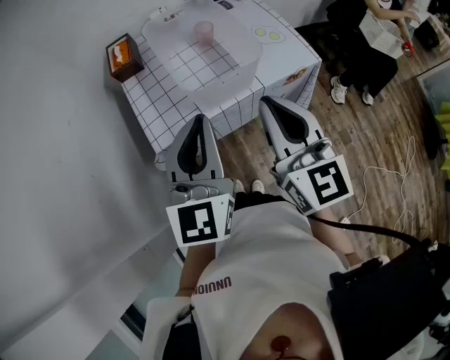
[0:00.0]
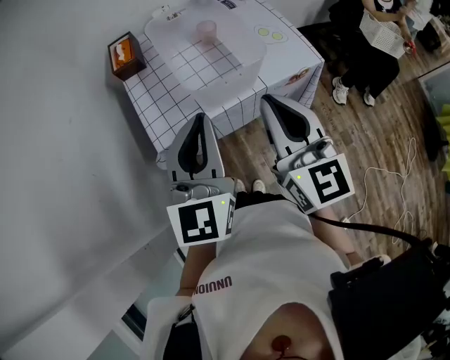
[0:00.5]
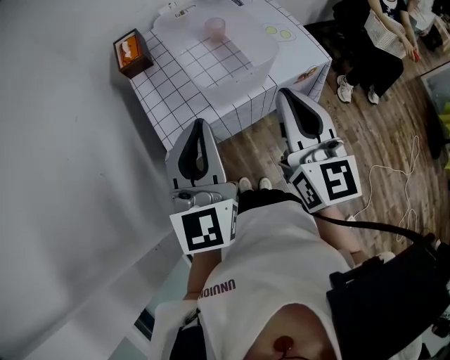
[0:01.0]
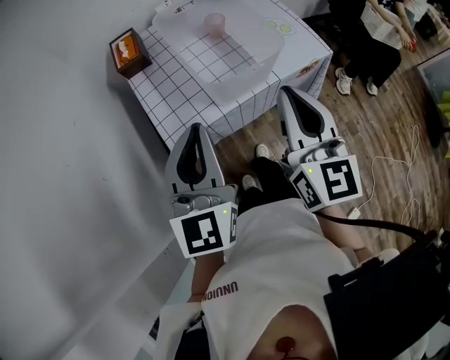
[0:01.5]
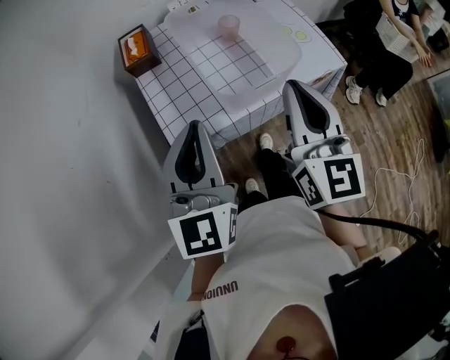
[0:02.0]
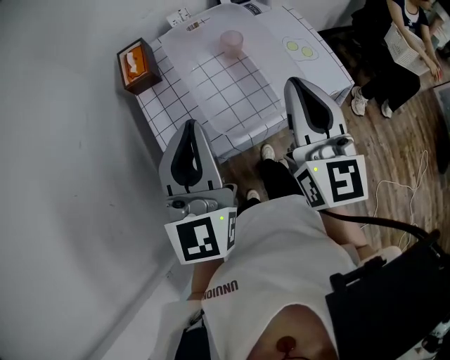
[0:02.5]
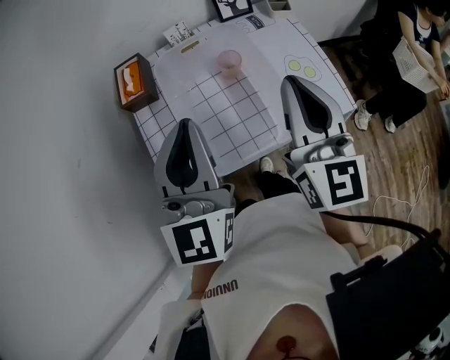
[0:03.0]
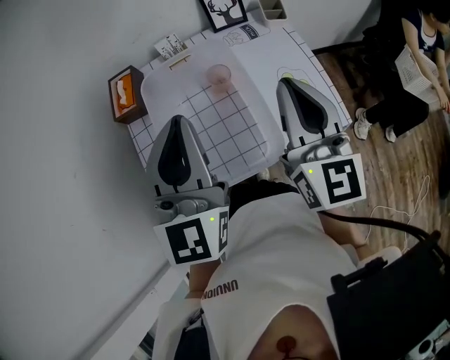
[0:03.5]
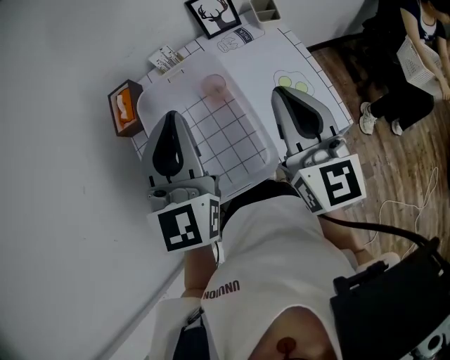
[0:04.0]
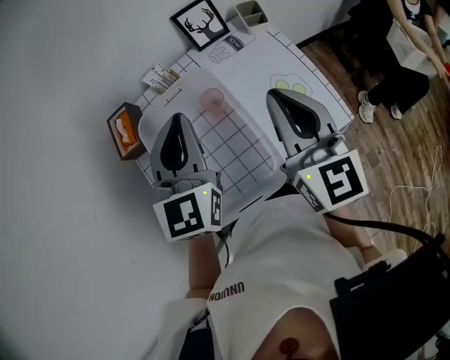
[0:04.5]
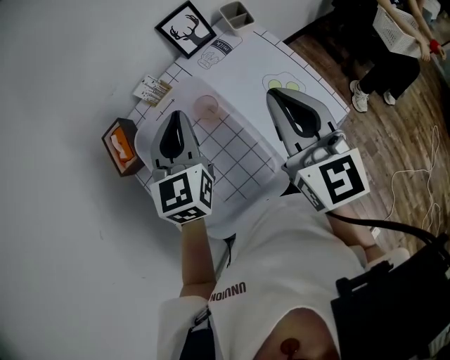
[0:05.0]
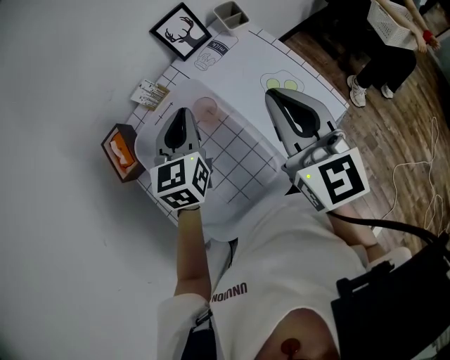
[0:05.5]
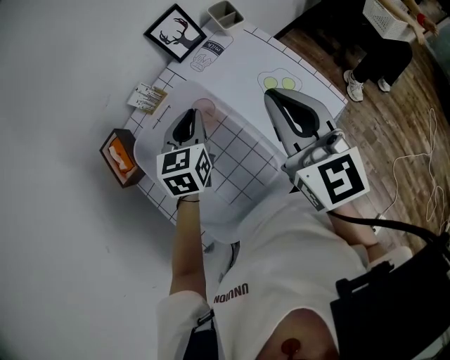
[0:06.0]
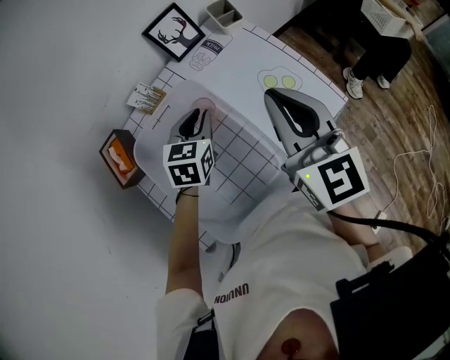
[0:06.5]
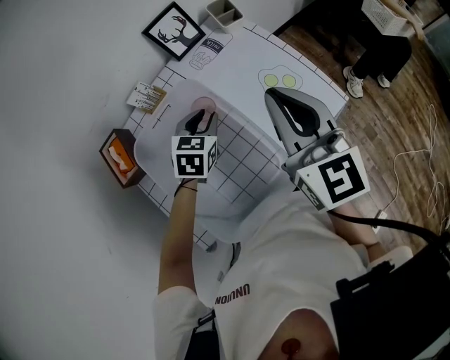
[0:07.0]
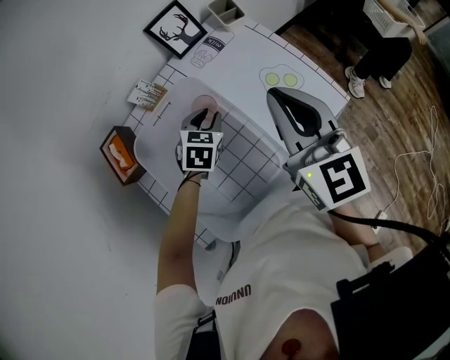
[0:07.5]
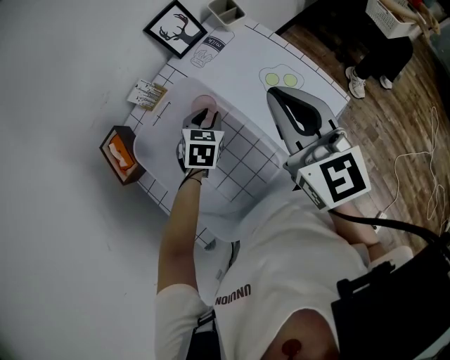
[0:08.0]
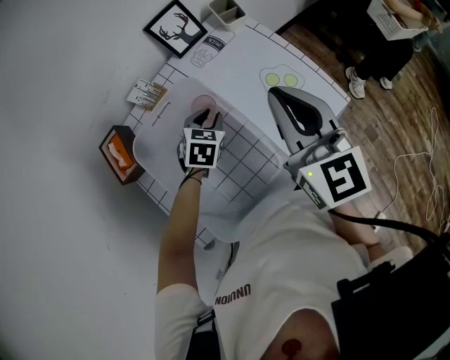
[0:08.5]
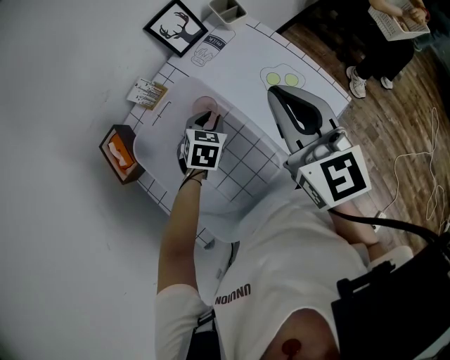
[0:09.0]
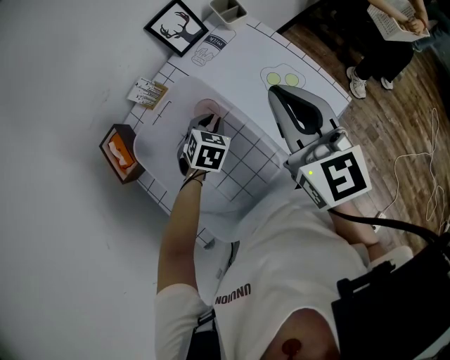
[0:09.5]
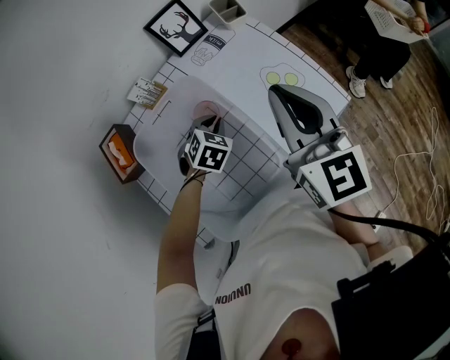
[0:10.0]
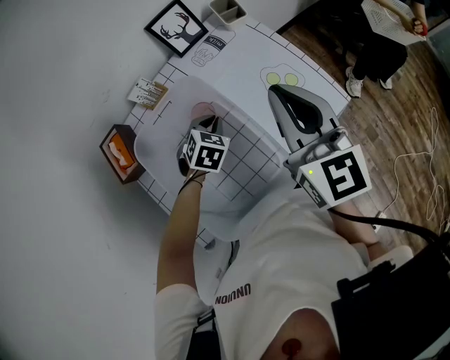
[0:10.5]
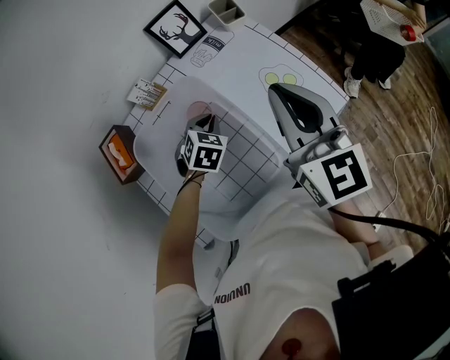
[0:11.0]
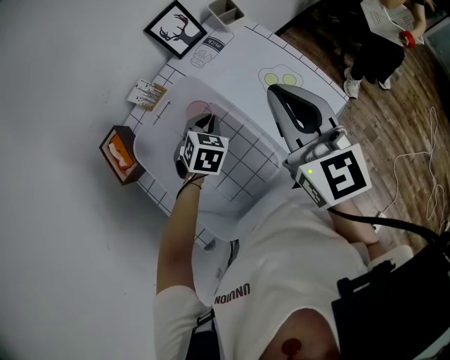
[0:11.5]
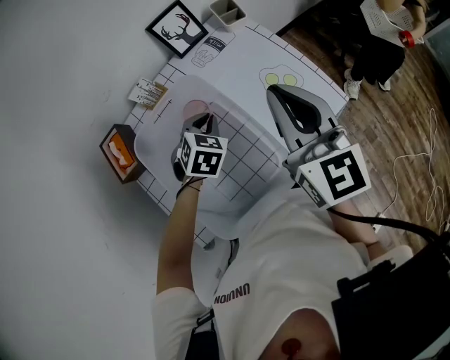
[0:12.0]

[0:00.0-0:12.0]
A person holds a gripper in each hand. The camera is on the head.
0:00.0 to 0:02.0: The right gripper goes some 5 cm forward; the left gripper heads to the left, covering about 10 cm.
0:02.0 to 0:04.0: Both grippers move forward and to the right, approximately 25 cm.
0:04.0 to 0:06.0: The left gripper goes about 25 cm downward and forward, and points its fingers some 30 degrees further downward.
0:06.0 to 0:08.0: The left gripper goes roughly 10 cm downward, and turns by about 20 degrees.
0:08.0 to 0:10.0: The grippers stay close to where they were, moving slightly.
0:10.0 to 0:12.0: The left gripper heads upward, covering about 5 cm.

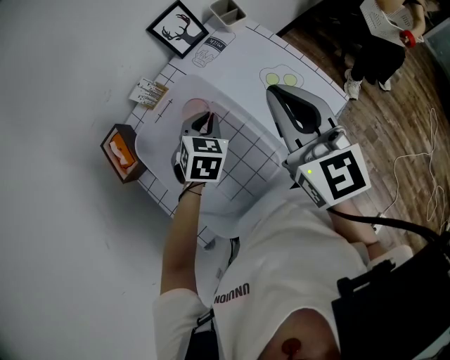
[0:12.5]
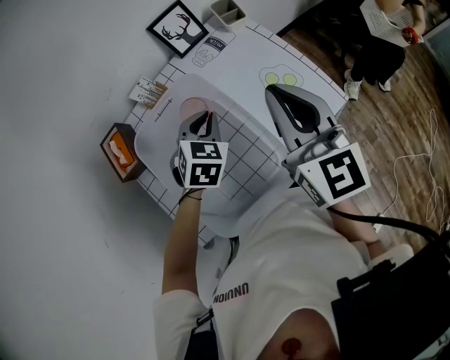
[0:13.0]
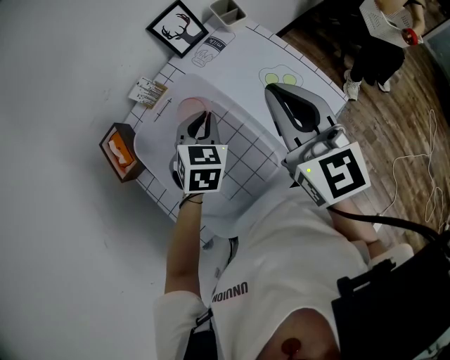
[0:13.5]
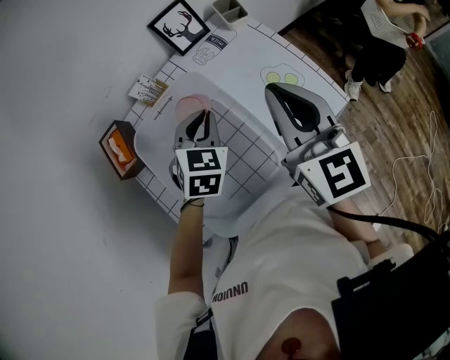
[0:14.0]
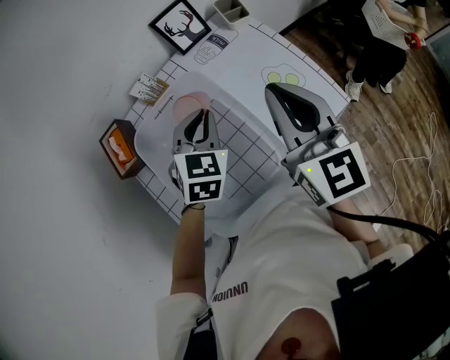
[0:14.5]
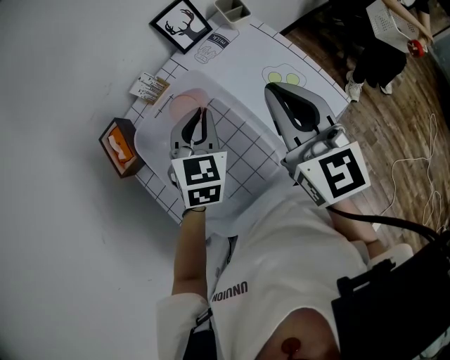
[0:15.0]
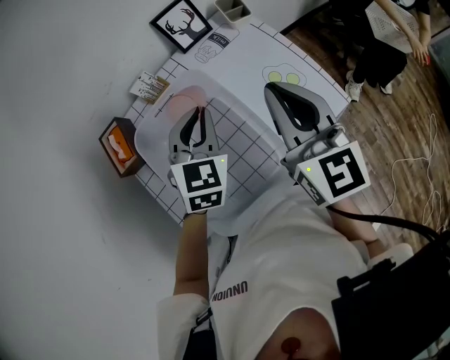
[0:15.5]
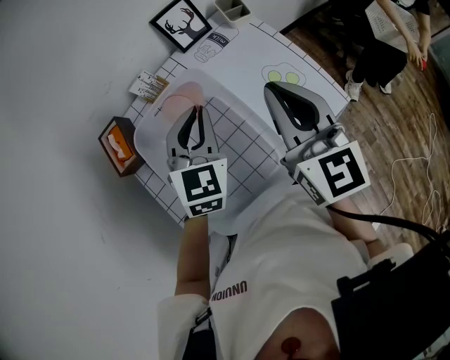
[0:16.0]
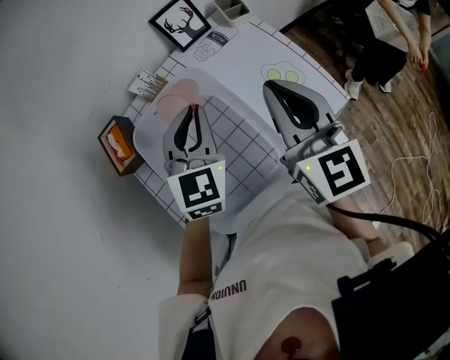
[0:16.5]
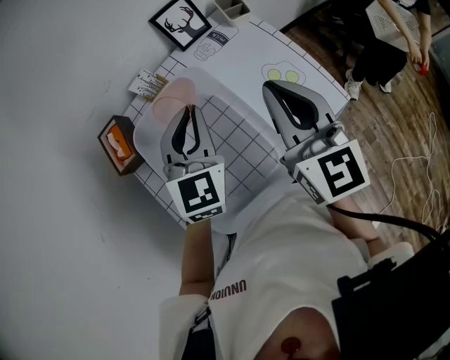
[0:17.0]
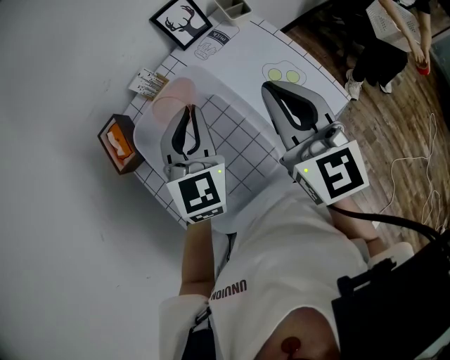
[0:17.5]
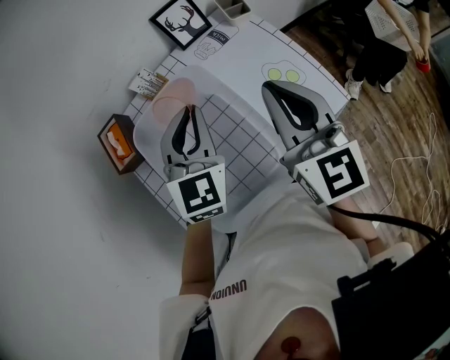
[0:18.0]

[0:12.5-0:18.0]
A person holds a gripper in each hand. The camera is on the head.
0:12.5 to 0:14.5: The left gripper moves upward, approximately 5 cm.
0:14.5 to 0:16.0: The left gripper travels upward by some 5 cm.
0:16.0 to 0:18.0: The grippers move only a little.

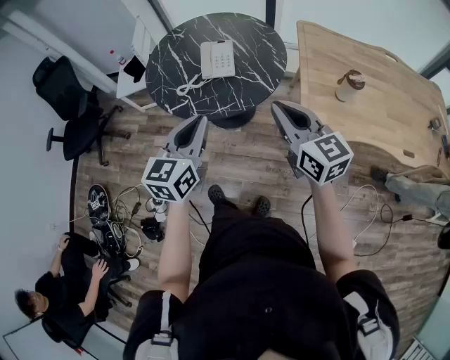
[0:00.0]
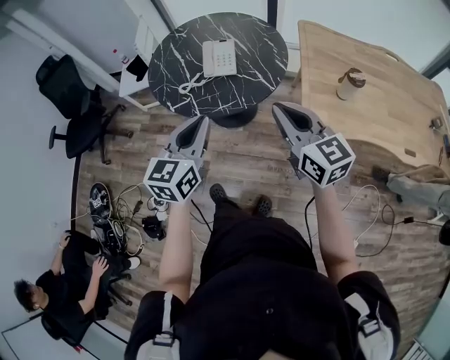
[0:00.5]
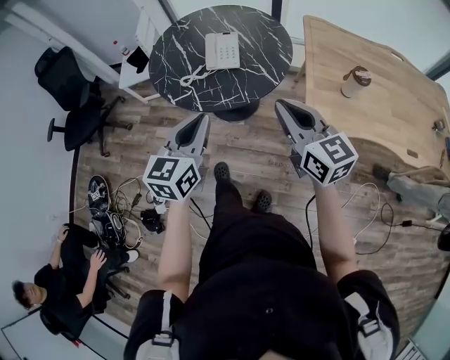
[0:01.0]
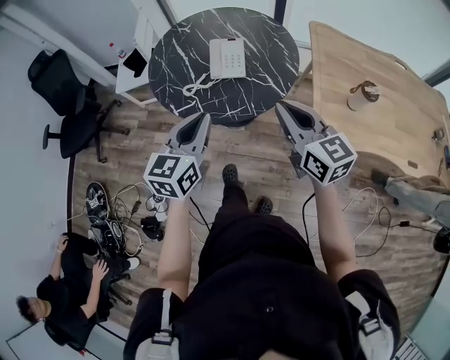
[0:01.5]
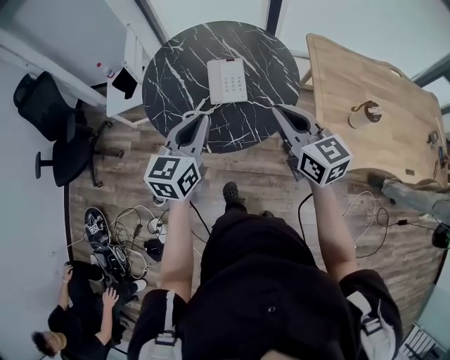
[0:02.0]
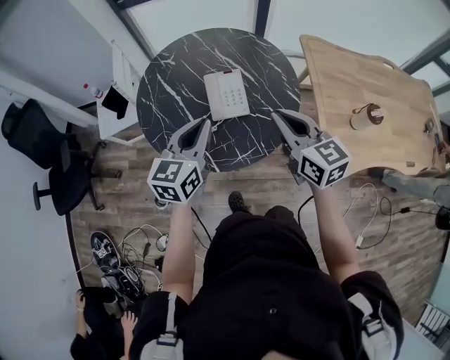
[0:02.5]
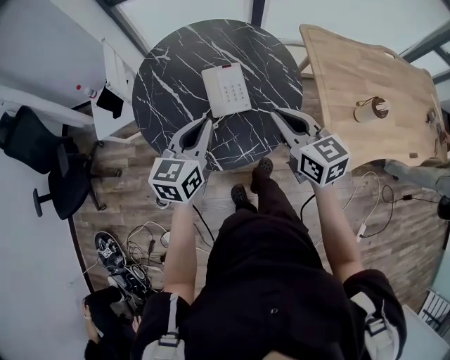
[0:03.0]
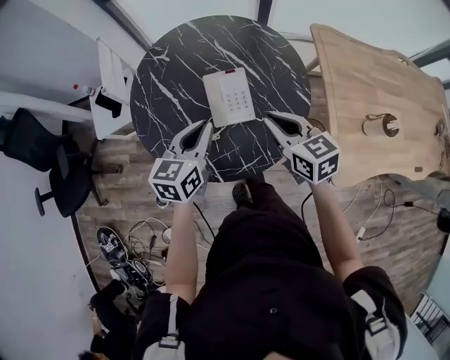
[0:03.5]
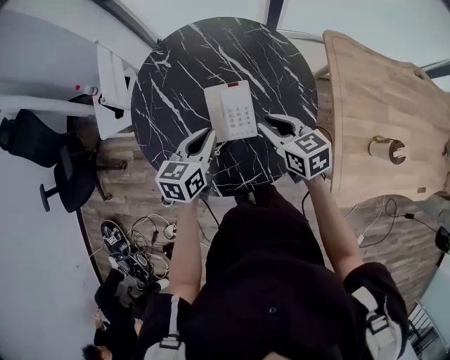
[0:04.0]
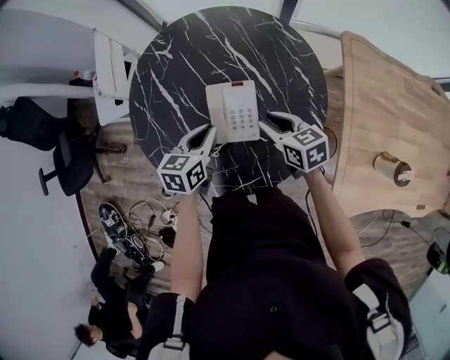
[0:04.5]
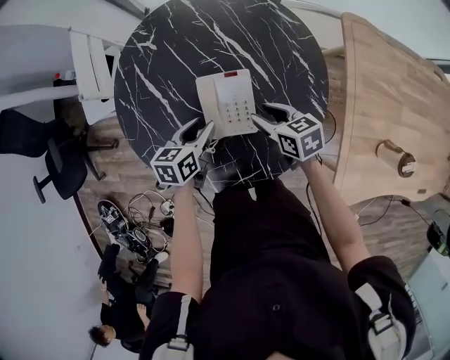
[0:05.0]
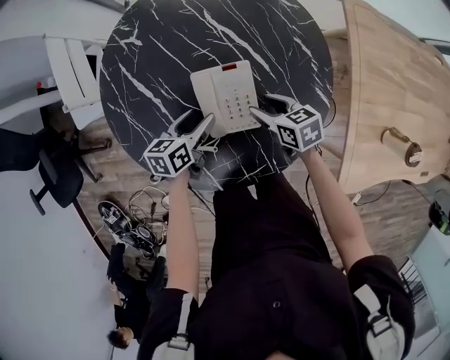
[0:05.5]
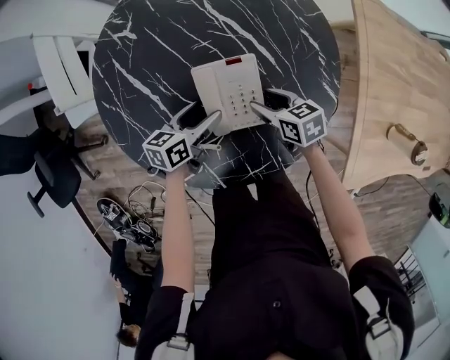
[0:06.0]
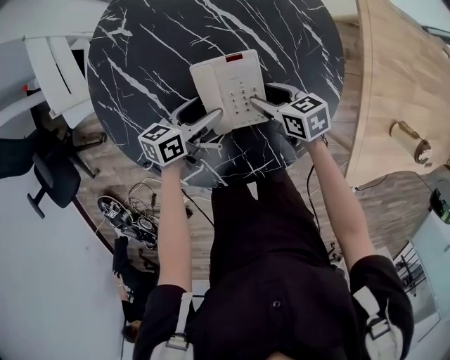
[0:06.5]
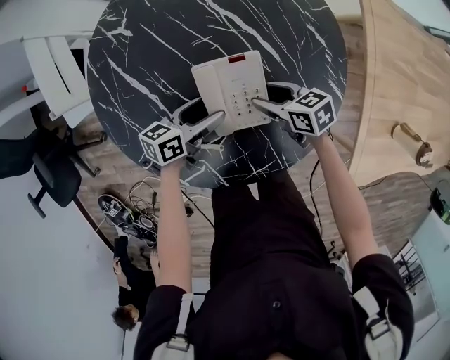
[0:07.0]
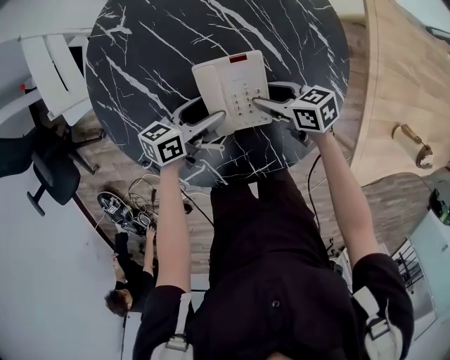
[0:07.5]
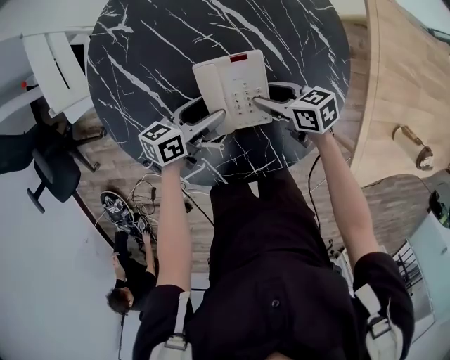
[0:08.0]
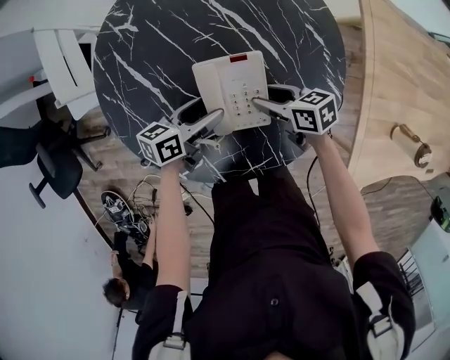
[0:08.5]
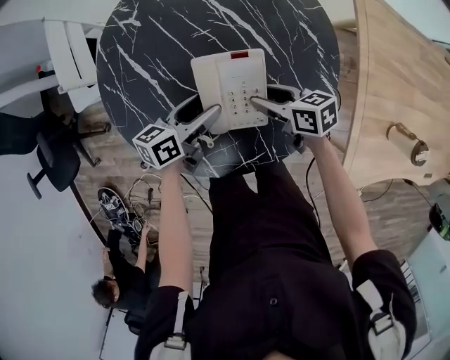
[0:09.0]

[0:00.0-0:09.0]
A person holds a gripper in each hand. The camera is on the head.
0:00.0 to 0:02.0: The left gripper moves forward, about 20 cm. Meanwhile the right gripper shifts about 20 cm forward and to the left.
0:02.0 to 0:04.5: The two grippers go roughly 35 cm forward and downward. The right gripper swivels roughly 30 degrees, and opens its fingers, while the left gripper swivels about 30 degrees.
0:04.5 to 0:07.0: The two grippers go about 15 cm downward. The left gripper swivels approximately 30 degrees, and opens up. The right gripper opens.
0:07.0 to 0:09.0: Both grippers travel together upward, roughly 5 cm.
